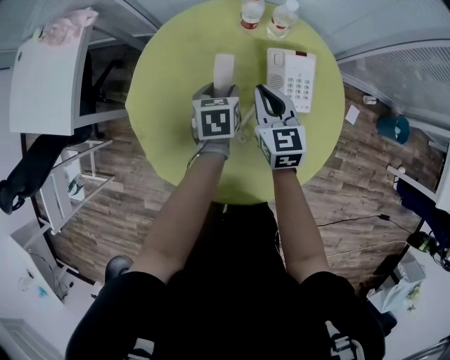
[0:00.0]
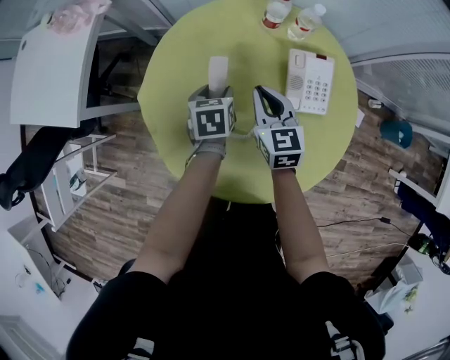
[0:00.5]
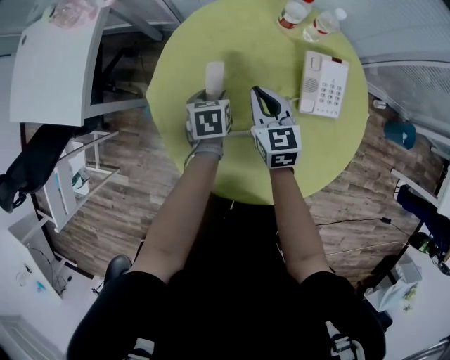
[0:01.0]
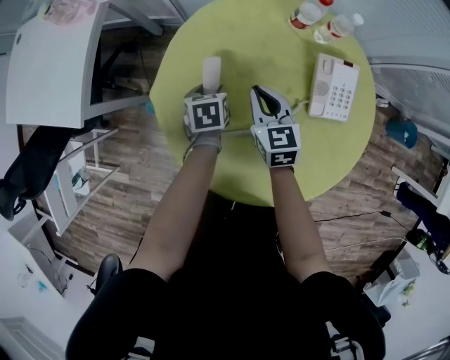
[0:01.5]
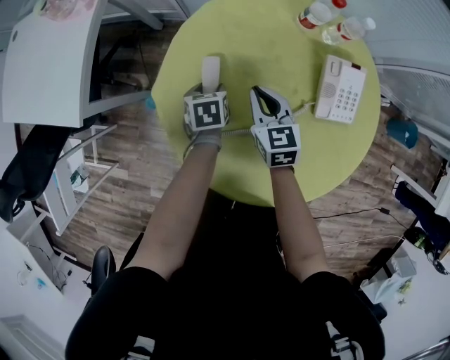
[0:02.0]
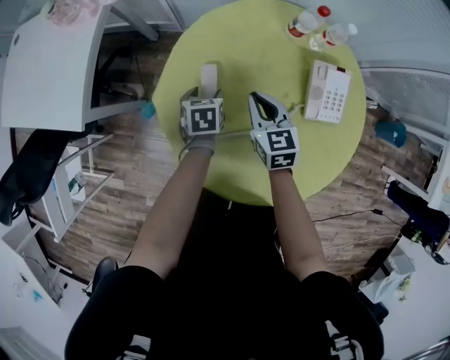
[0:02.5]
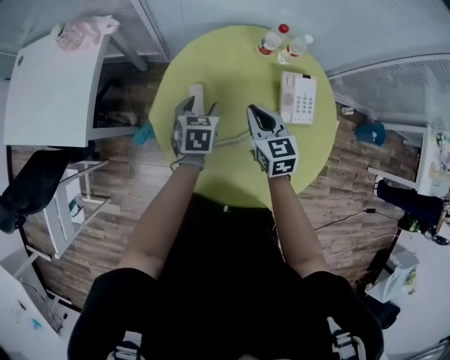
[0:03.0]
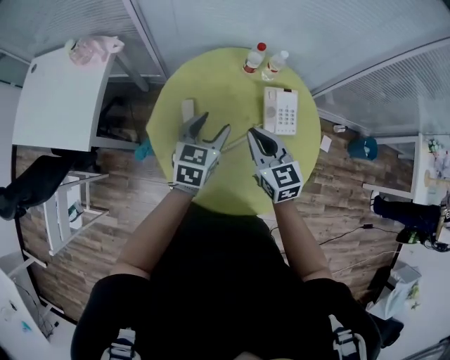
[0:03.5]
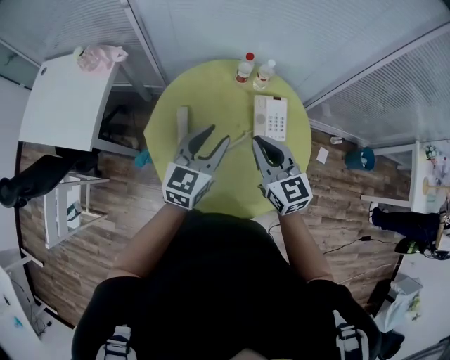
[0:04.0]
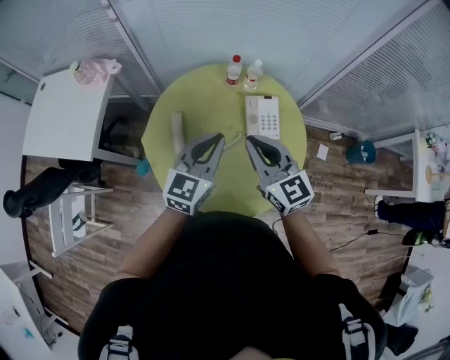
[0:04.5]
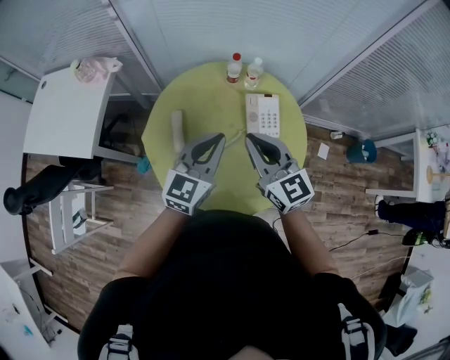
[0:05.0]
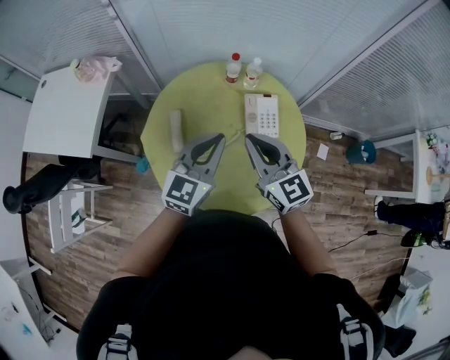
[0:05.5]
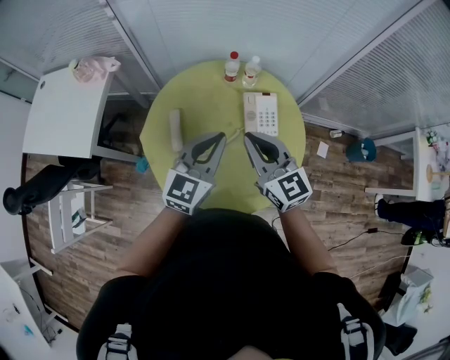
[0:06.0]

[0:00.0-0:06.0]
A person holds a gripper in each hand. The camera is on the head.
0:00.0 to 0:02.0: Both grippers move to the left and downward, roughly 20 cm.
0:02.0 to 0:04.0: The right gripper travels upward, backward and to the right by roughly 35 cm, and swivels roughly 20 degrees, while the left gripper heads upward, covering some 40 cm, and tips its fingers upward by approximately 50 degrees.
0:04.0 to 0:06.0: The left gripper shifts some 5 cm to the right, and closes.

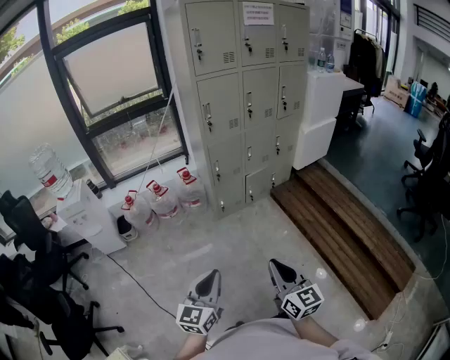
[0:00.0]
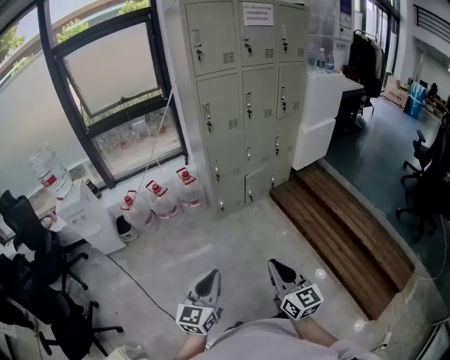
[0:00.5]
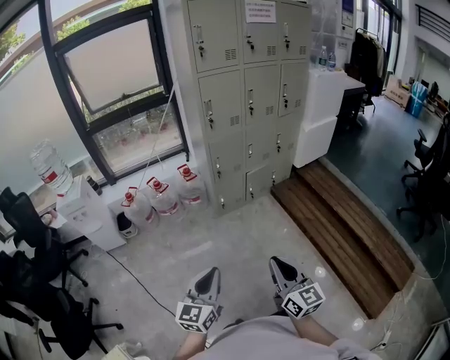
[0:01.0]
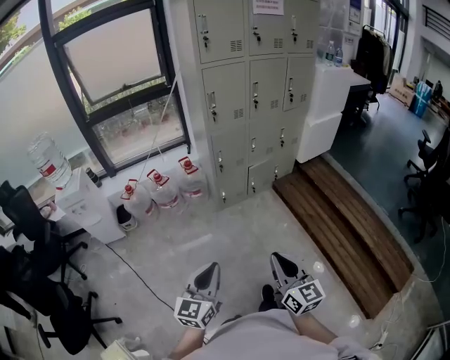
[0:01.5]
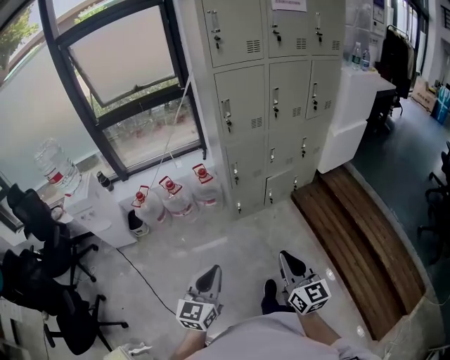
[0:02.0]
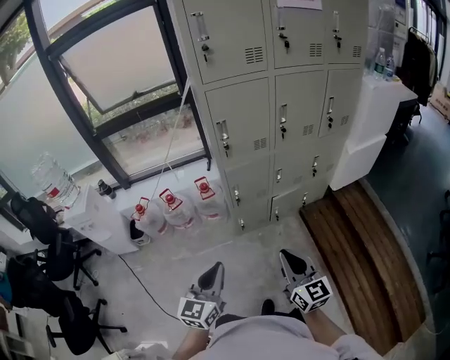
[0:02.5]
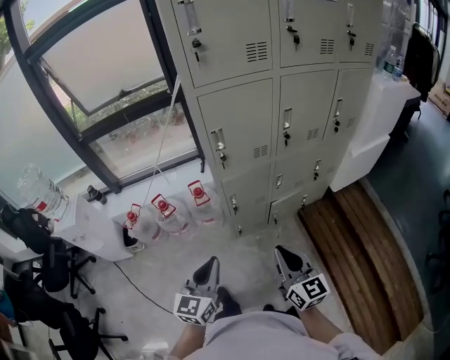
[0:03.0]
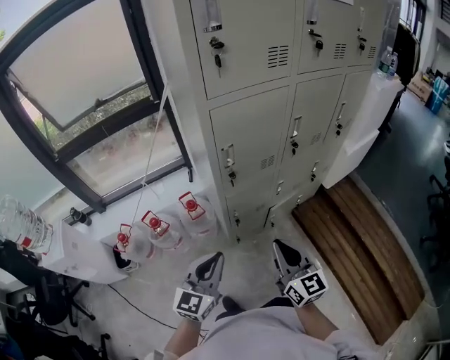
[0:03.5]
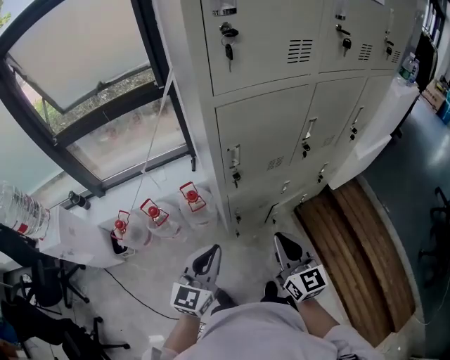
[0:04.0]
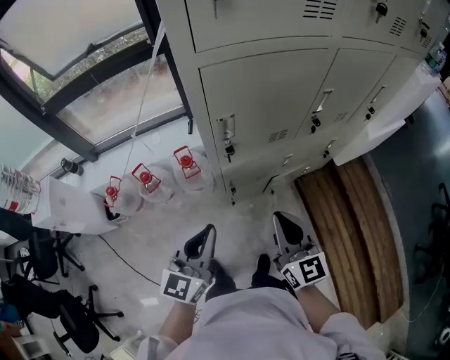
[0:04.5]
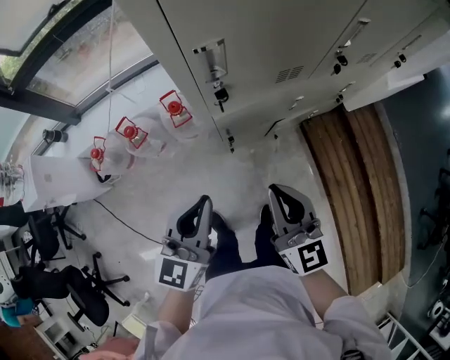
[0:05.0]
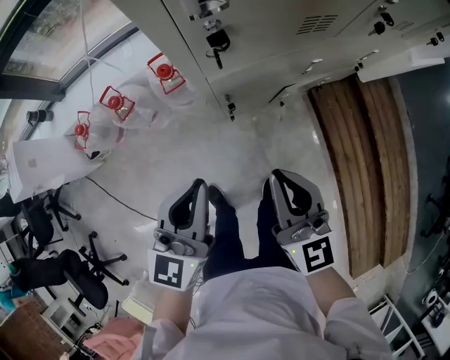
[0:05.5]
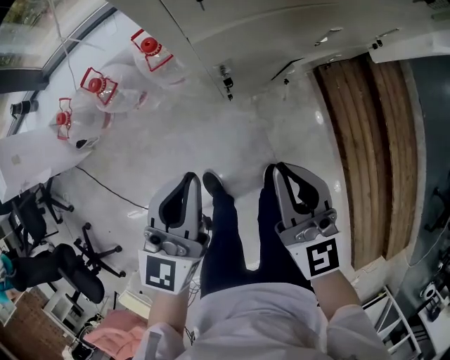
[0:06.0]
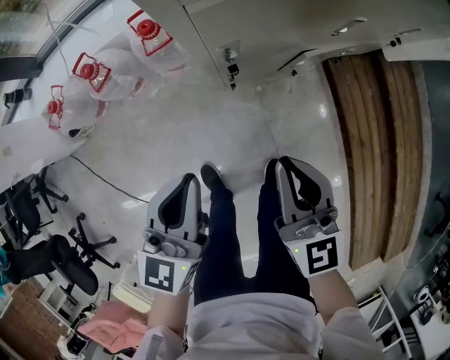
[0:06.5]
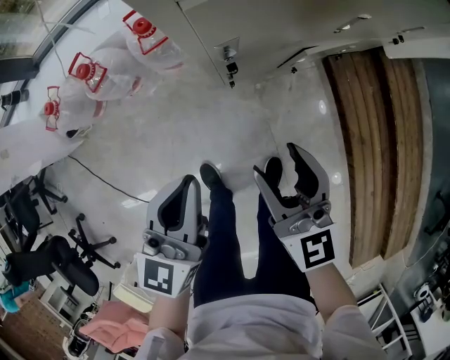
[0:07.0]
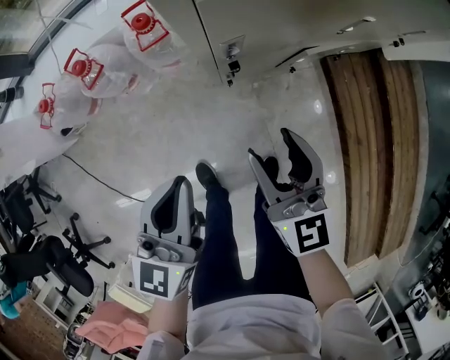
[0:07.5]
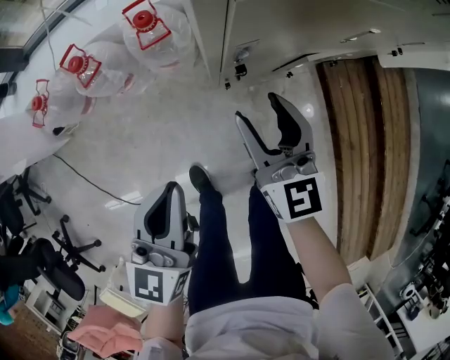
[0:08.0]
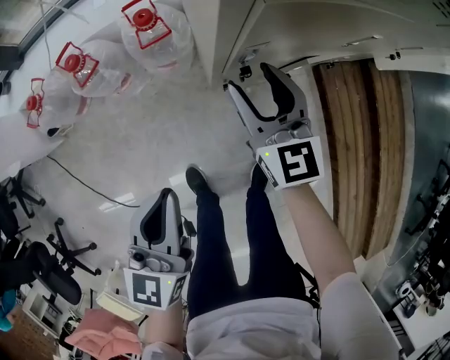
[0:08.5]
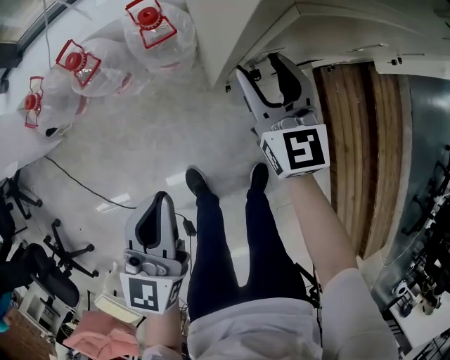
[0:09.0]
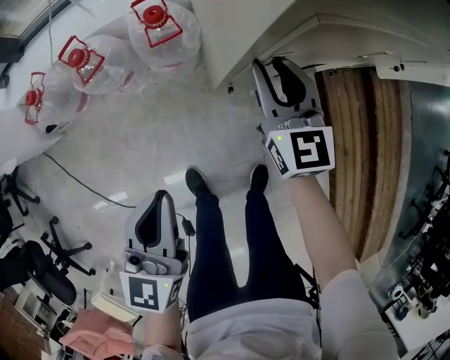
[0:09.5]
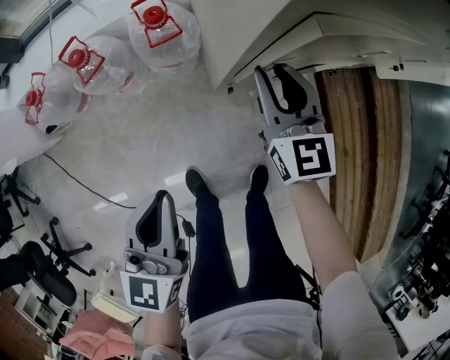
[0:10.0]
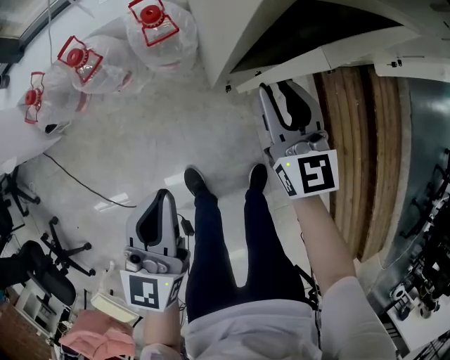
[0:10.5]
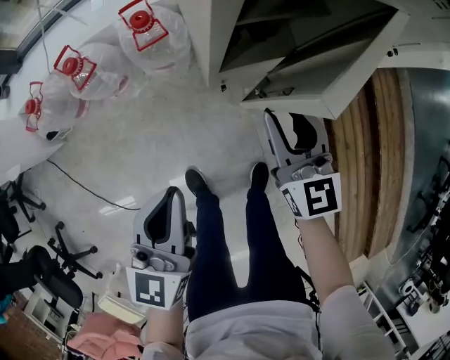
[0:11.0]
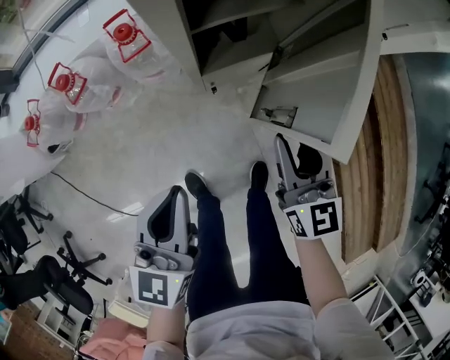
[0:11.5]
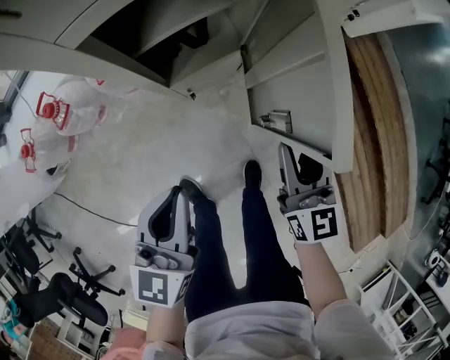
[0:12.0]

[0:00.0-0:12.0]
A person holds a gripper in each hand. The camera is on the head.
0:00.0 to 0:02.0: Both grippers move forward, some 15 cm.
0:02.0 to 0:04.0: The two grippers travel together, forward, roughly 50 cm.
0:04.0 to 0:06.0: The two grippers go about 25 cm downward.
0:06.0 to 0:08.0: The right gripper goes about 15 cm downward, forward and to the left, and opens its fingers; the left gripper travels downward and to the left by roughly 10 cm.
0:08.0 to 0:10.0: The left gripper heads to the left, covering some 5 cm; the right gripper is displaced forward by some 10 cm, and closes up.
0:10.0 to 0:12.0: The right gripper moves to the right and backward, roughly 30 cm, and changes its angle by approximately 20 degrees; the left gripper travels to the right by some 20 cm.

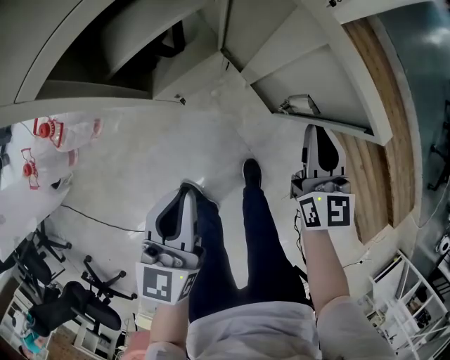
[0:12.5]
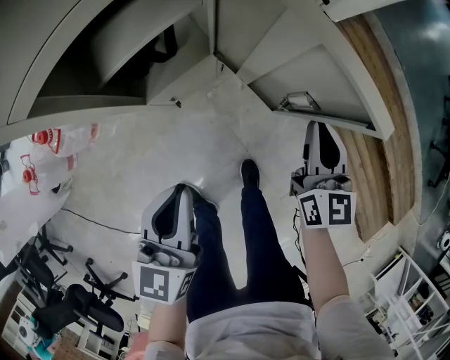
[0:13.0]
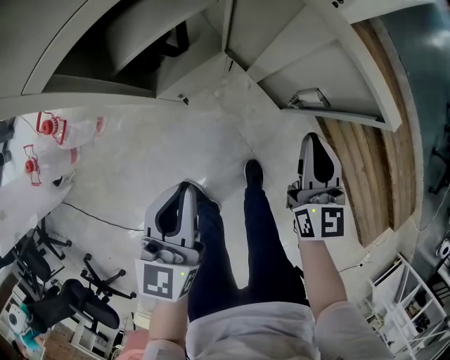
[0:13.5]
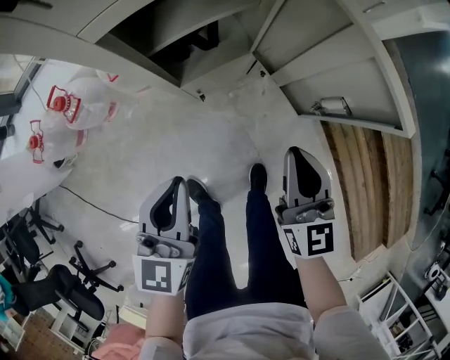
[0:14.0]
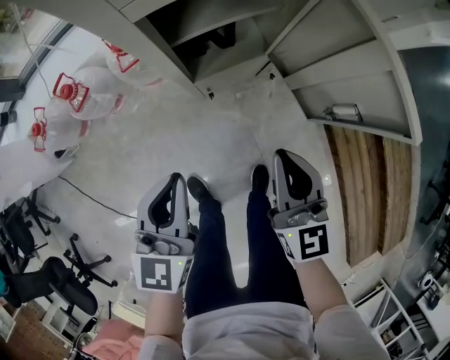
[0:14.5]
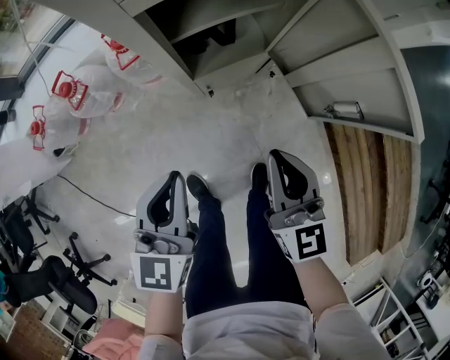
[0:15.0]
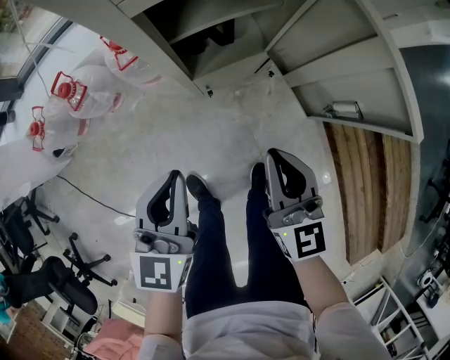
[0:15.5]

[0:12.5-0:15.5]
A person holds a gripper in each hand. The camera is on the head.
0:12.5 to 0:14.0: The right gripper heads to the left and backward, covering about 10 cm. The left gripper heads to the left, covering about 5 cm.
0:14.0 to 0:15.5: The right gripper shifts some 10 cm to the left.

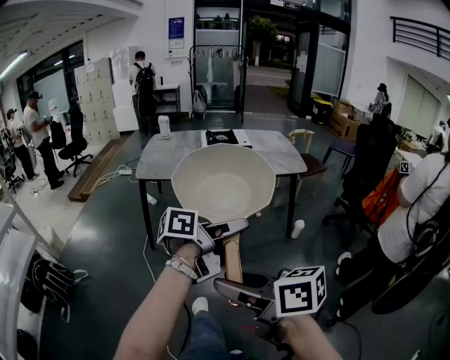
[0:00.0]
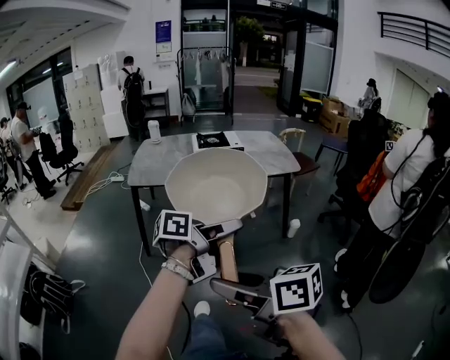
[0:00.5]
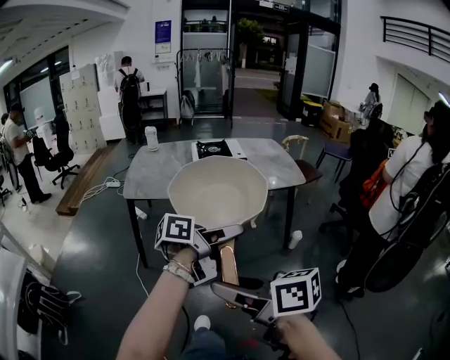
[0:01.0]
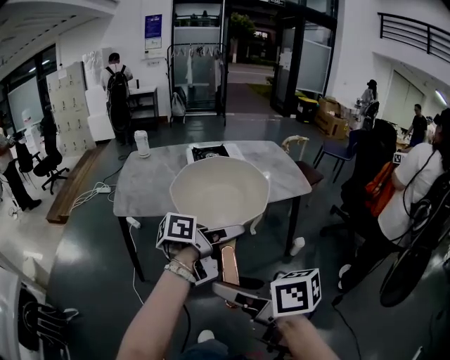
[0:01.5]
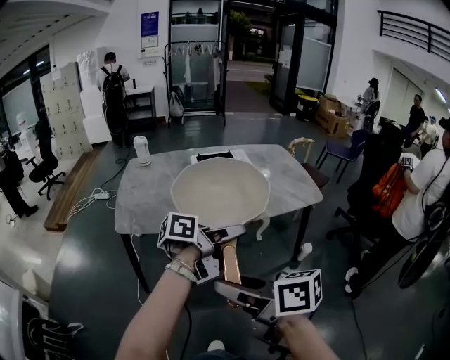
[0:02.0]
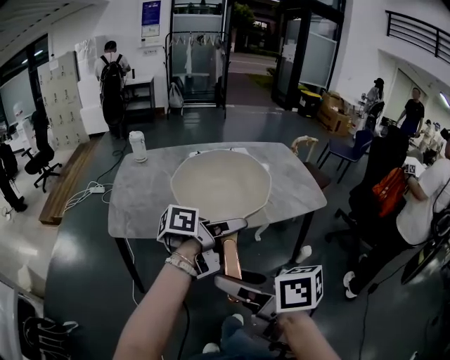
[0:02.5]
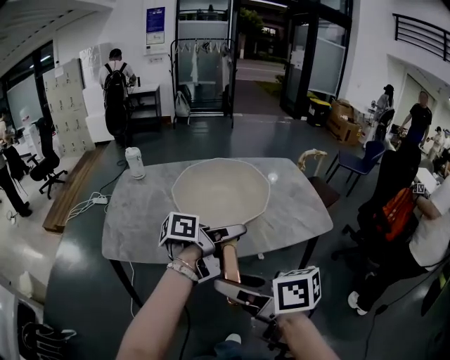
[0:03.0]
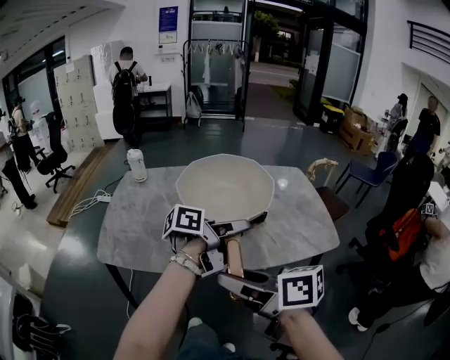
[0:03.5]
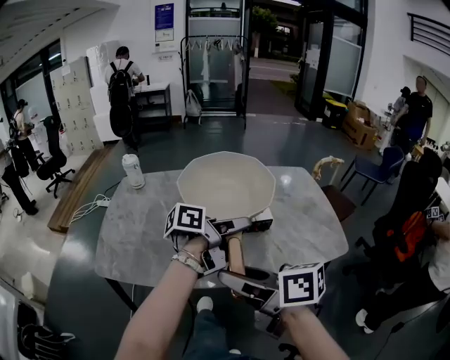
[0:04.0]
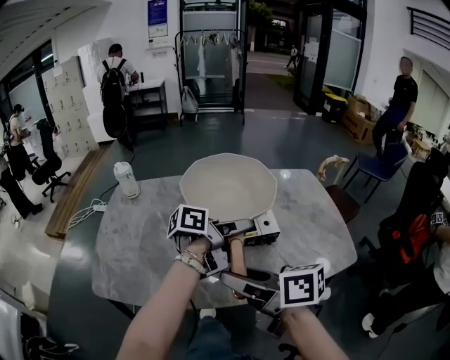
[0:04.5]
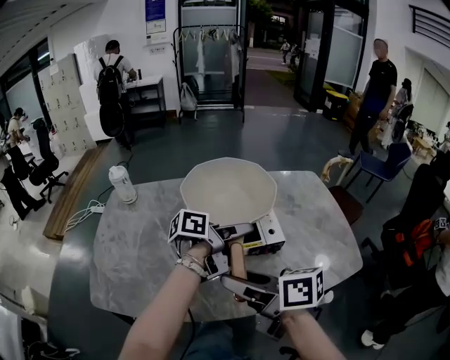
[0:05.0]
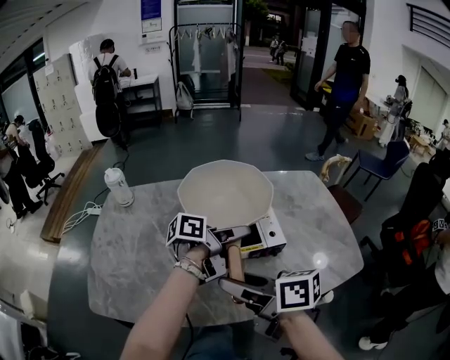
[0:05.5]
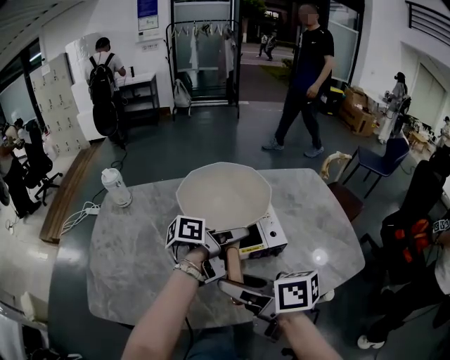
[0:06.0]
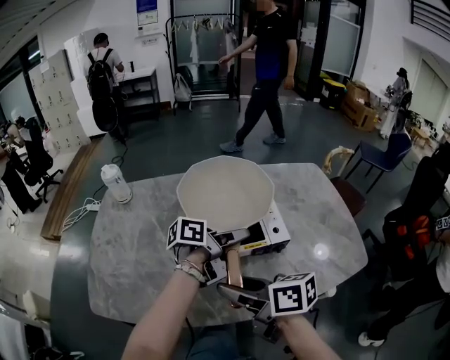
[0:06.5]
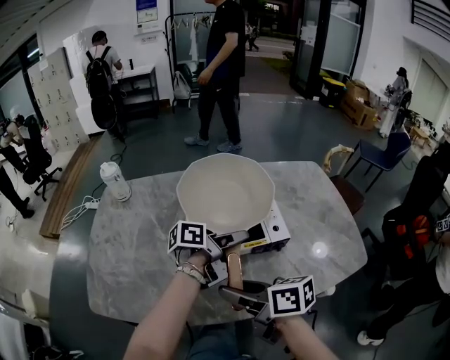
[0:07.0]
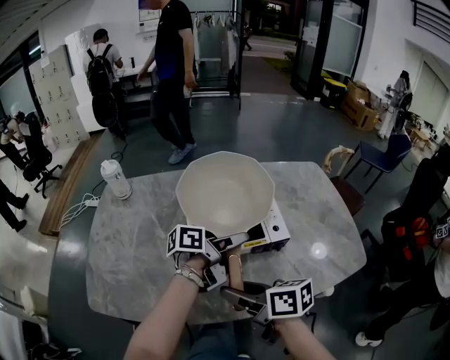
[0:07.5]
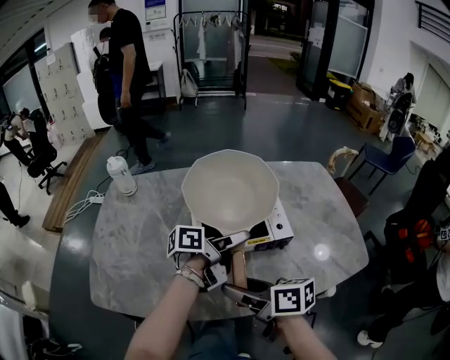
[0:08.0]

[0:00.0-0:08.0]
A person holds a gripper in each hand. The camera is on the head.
0:00.0 to 0:02.0: The two grippers go approximately 30 cm forward.
0:02.0 to 0:04.0: Both grippers travel together forward, some 30 cm.
0:04.0 to 0:06.0: Both grippers move forward and downward, about 15 cm.
0:06.0 to 0:08.0: The right gripper goes about 5 cm downward.
